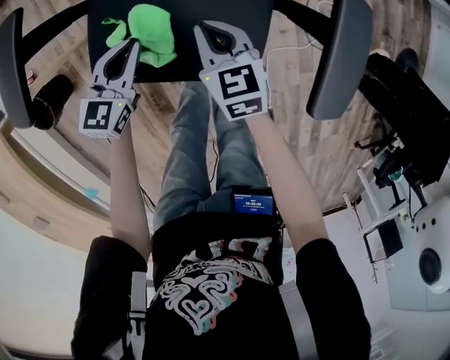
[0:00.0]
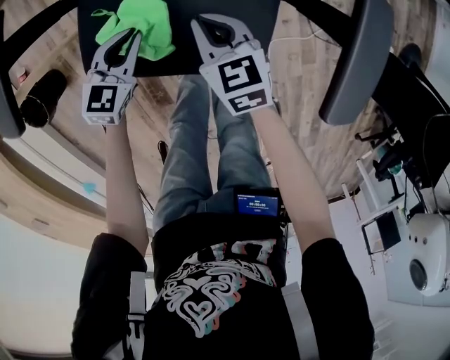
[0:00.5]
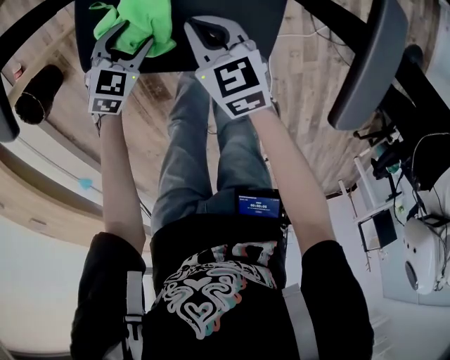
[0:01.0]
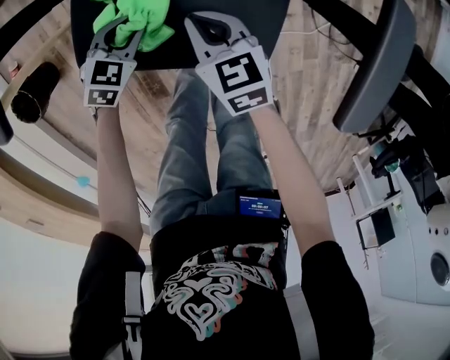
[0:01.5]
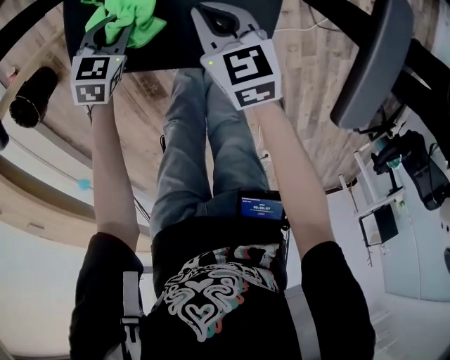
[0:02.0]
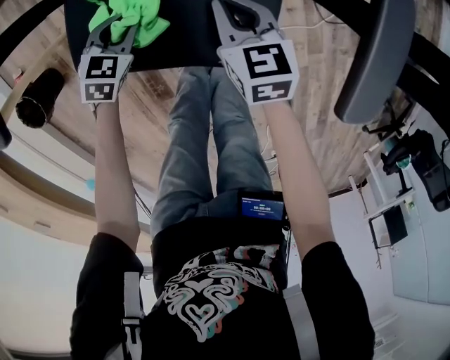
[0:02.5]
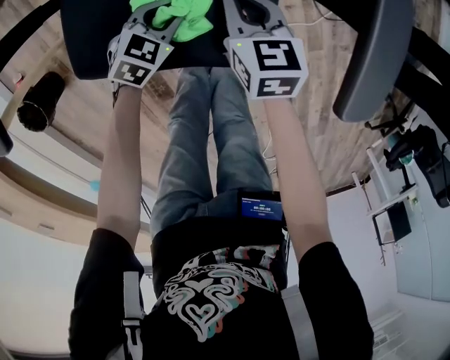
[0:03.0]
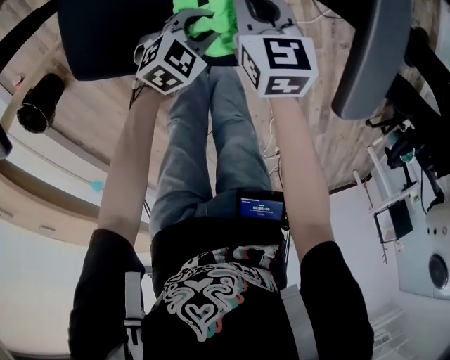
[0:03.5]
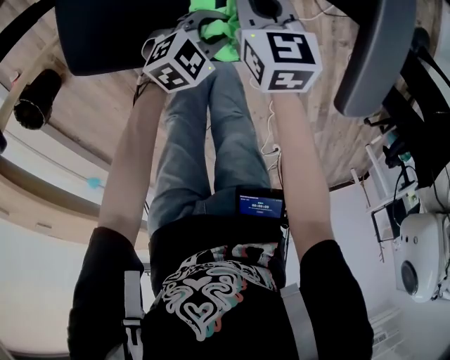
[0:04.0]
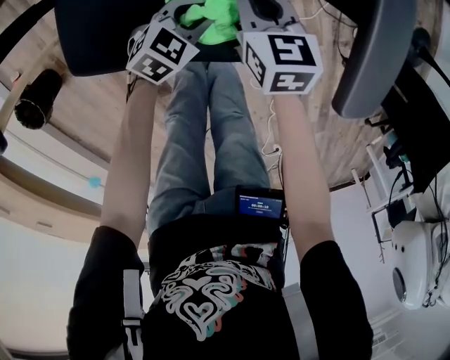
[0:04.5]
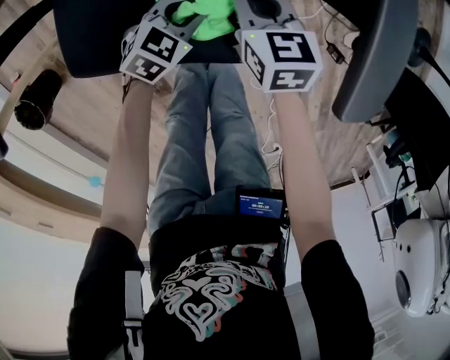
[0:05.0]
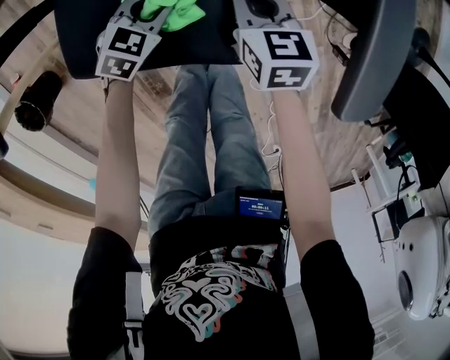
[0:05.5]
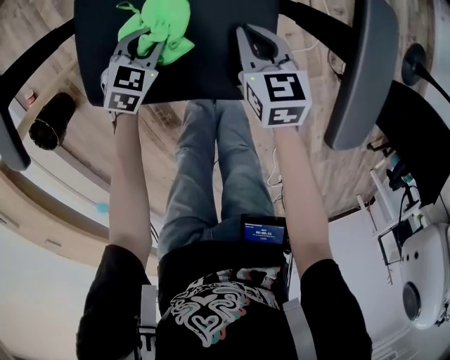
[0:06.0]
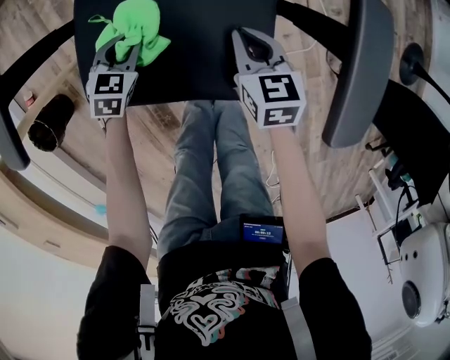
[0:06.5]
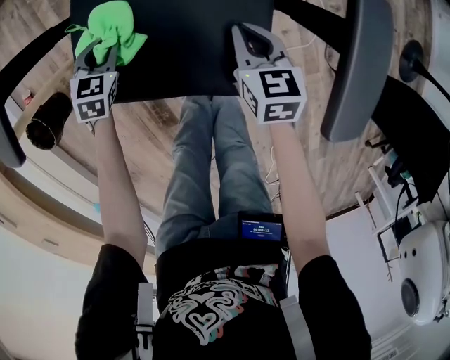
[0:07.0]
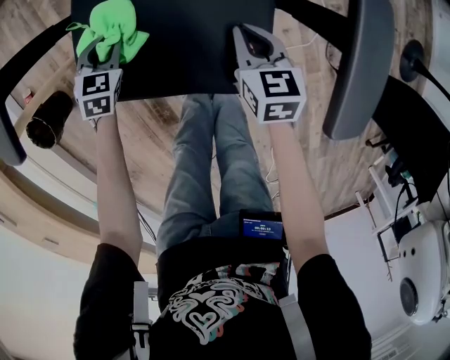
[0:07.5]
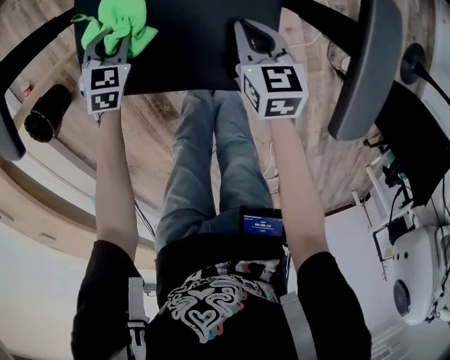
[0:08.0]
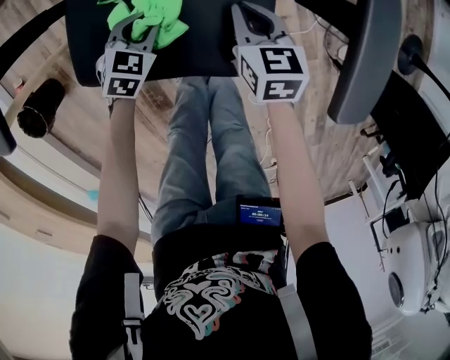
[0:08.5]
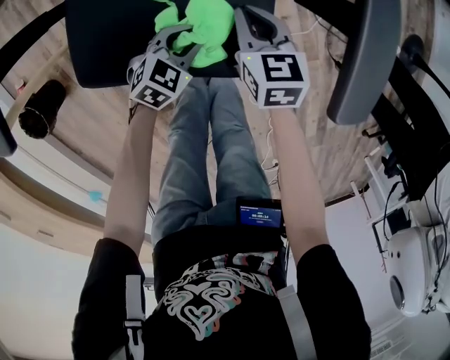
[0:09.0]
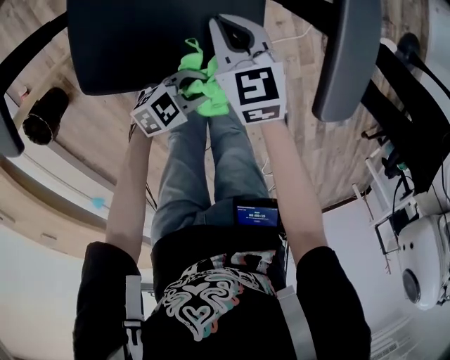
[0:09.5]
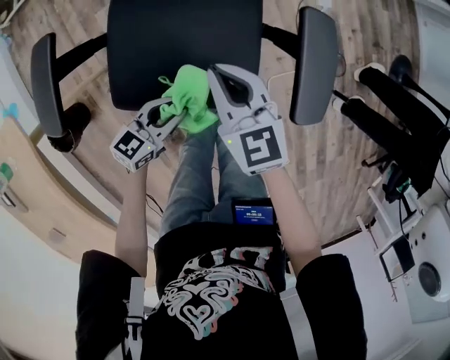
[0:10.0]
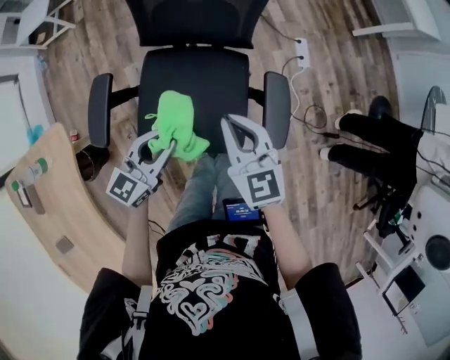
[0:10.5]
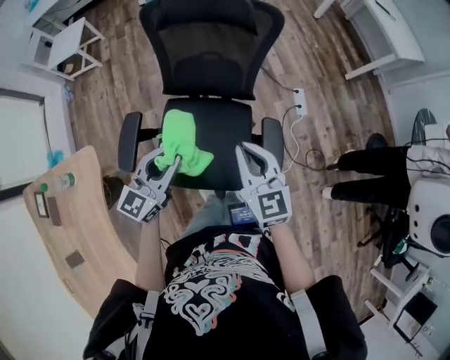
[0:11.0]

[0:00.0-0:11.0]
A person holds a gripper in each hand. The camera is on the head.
0:00.0 to 0:02.0: The left gripper is displaced downward by approximately 15 cm, rotates about 30 degrees, and opens, then closes once more.
0:02.0 to 0:03.5: The left gripper ends up approximately 20 cm from where it was, and turns by approximately 30 degrees. The right gripper ends up roughly 10 cm from where it was.
0:03.5 to 0:05.5: The left gripper moves to the left, some 10 cm.
0:05.5 to 0:07.5: The left gripper travels to the left by about 15 cm, and rotates approximately 20 degrees.
0:07.5 to 0:09.0: The left gripper goes approximately 20 cm to the right, and swivels approximately 30 degrees.
0:09.0 to 0:11.0: The two grippers go about 50 cm upward. The right gripper changes its angle by approximately 30 degrees. The left gripper points its fingers about 40 degrees further upward.

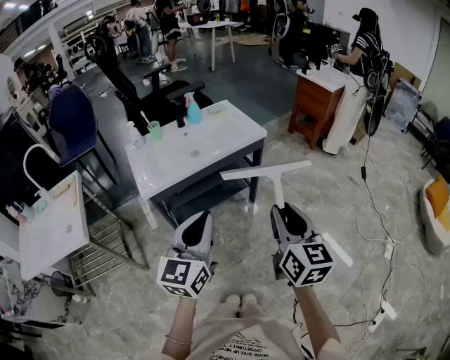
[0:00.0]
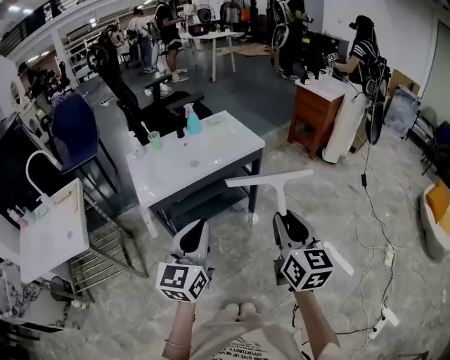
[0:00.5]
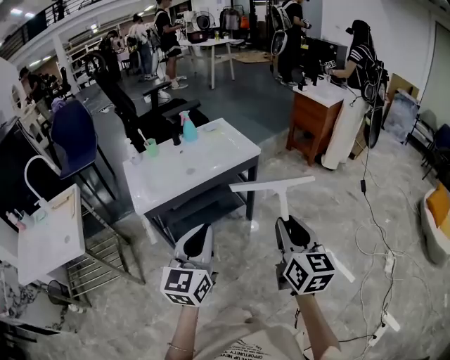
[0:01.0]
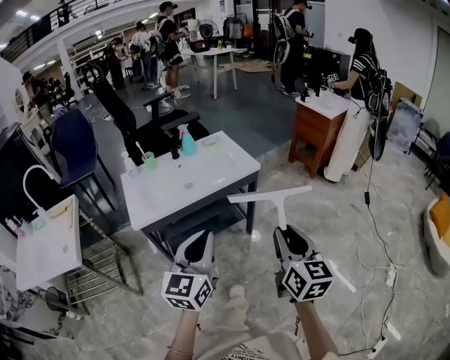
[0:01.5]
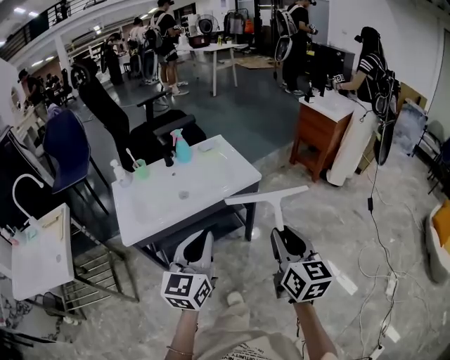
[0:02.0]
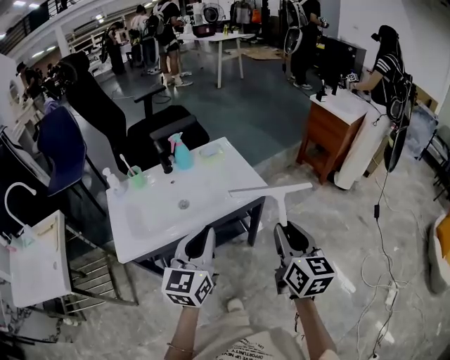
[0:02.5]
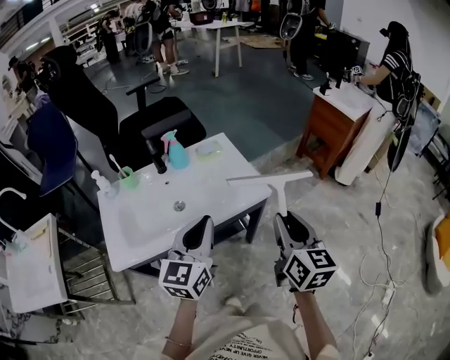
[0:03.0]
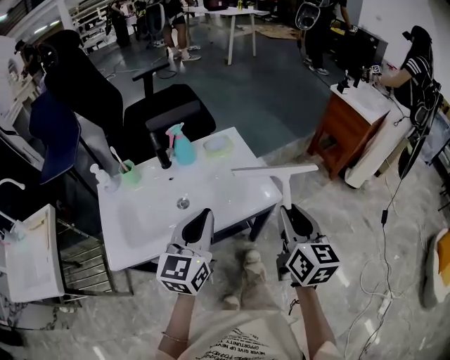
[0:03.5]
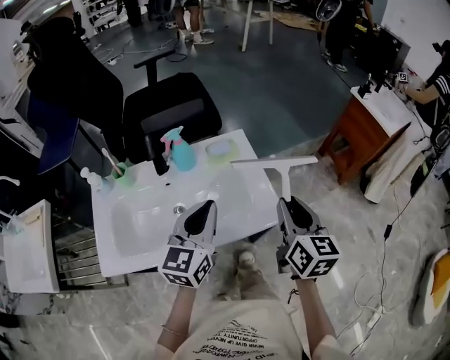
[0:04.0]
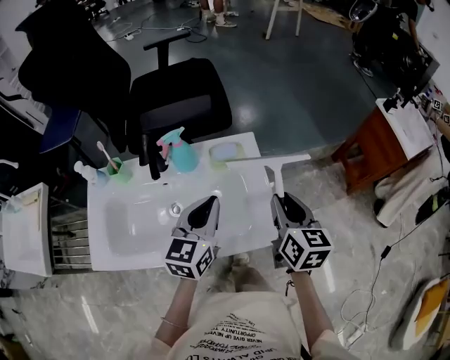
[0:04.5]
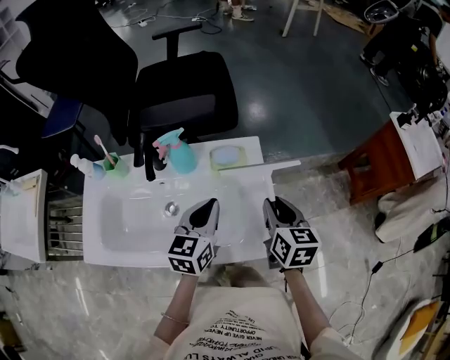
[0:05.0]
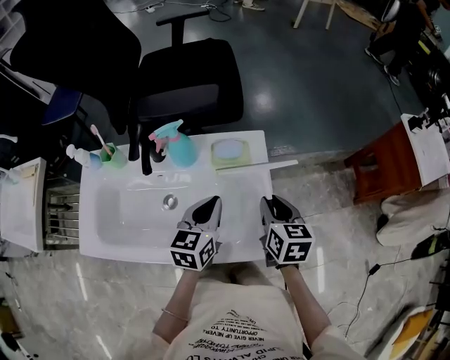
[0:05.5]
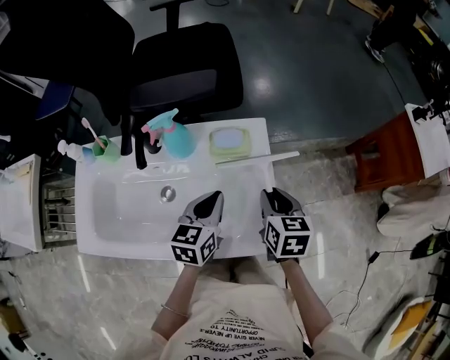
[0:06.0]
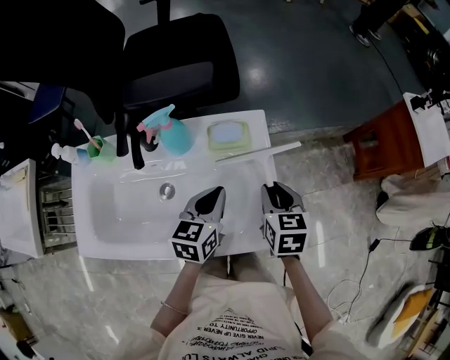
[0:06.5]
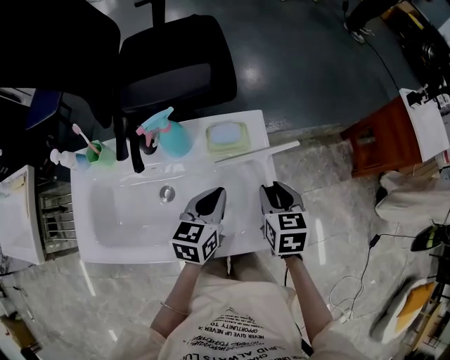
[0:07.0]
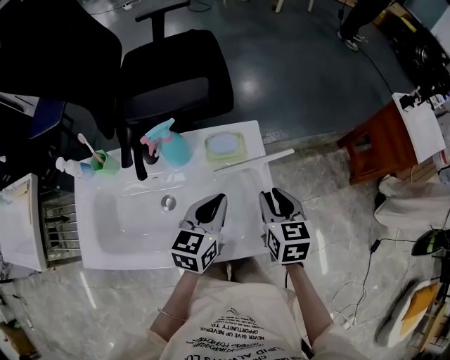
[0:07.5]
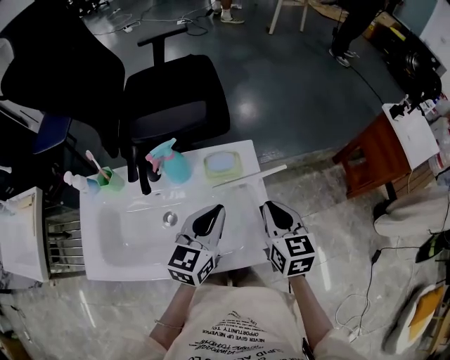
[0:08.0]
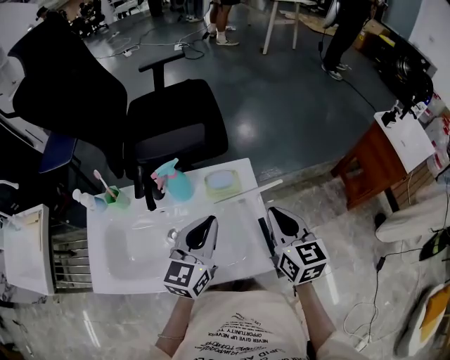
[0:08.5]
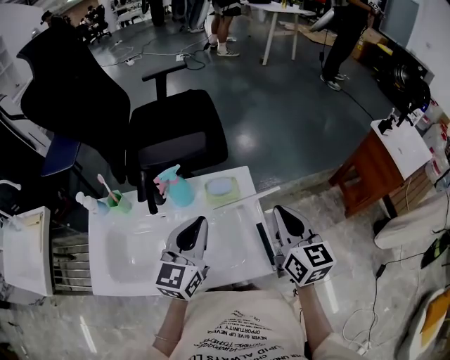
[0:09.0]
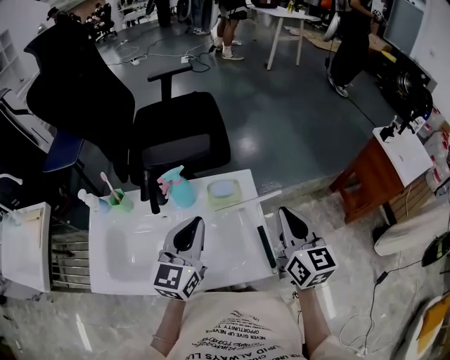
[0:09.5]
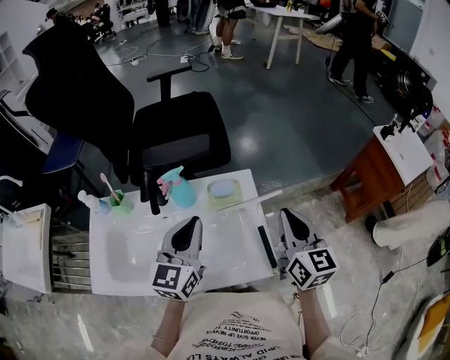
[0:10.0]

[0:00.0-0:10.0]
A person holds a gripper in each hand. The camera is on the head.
0:00.0 to 0:02.0: The right gripper heads forward and to the right, covering about 15 cm, while the left gripper shifts about 15 cm forward.
0:02.0 to 0:04.0: The two grippers go some 35 cm forward.
0:04.0 to 0:06.0: The two grippers go about 20 cm downward and forward. The right gripper swivels about 30 degrees. Meanwhile the left gripper turns by roughly 30 degrees.
0:06.0 to 0:08.0: Both grippers move upward, some 10 cm.
0:08.0 to 0:10.0: The left gripper is displaced upward and to the left by some 10 cm; the right gripper shifts approximately 10 cm upward.

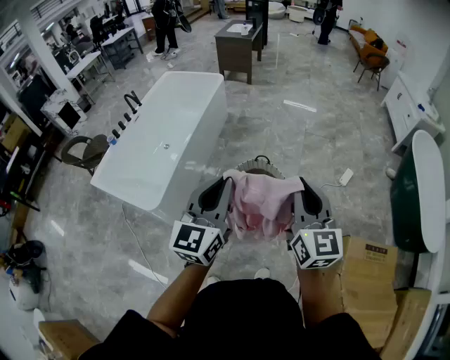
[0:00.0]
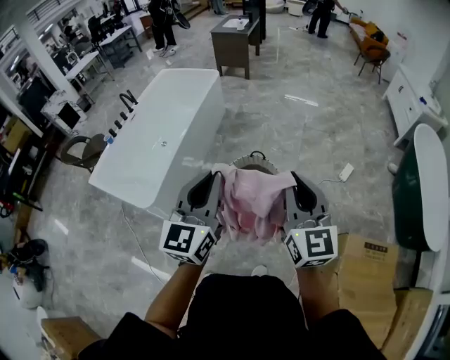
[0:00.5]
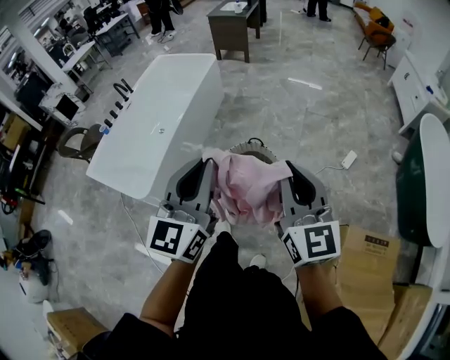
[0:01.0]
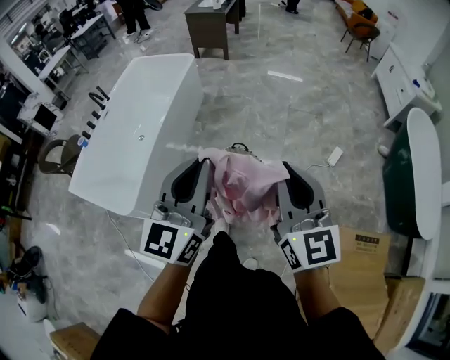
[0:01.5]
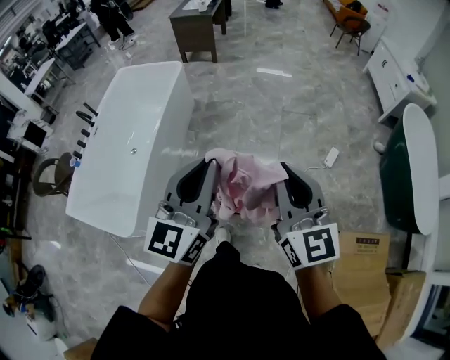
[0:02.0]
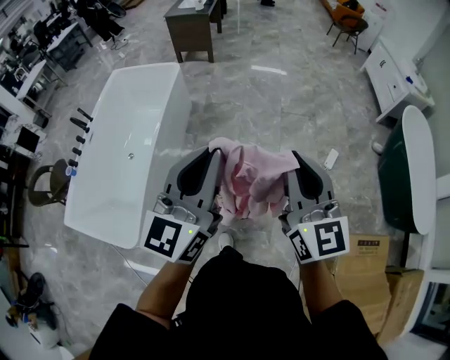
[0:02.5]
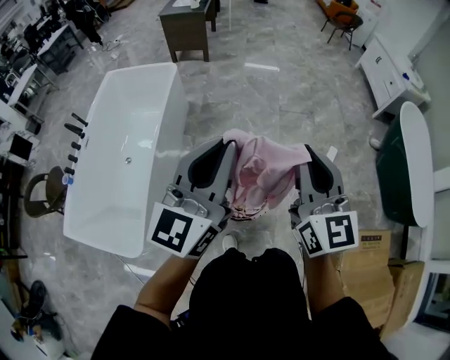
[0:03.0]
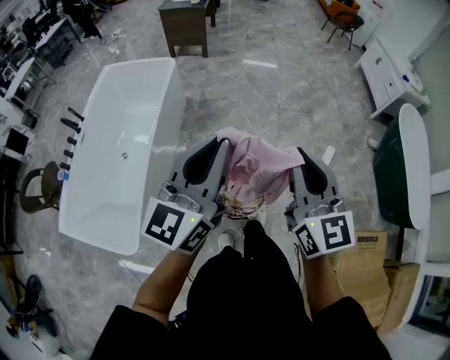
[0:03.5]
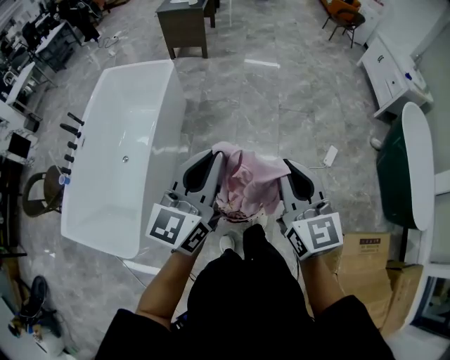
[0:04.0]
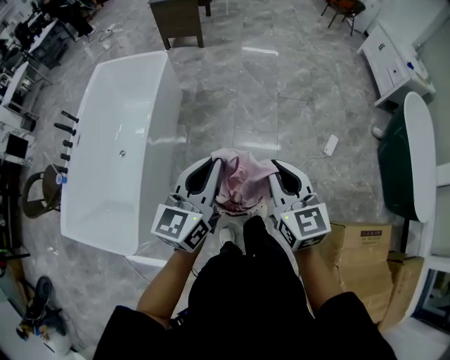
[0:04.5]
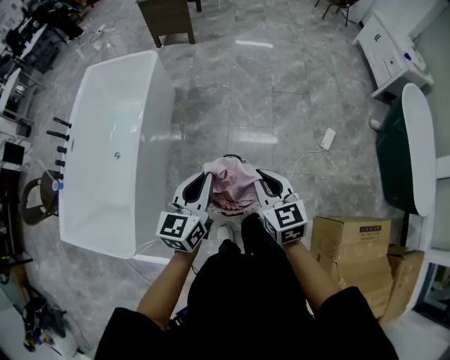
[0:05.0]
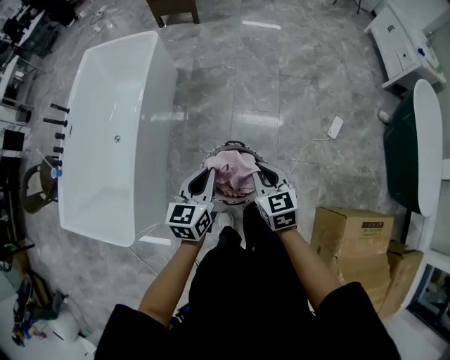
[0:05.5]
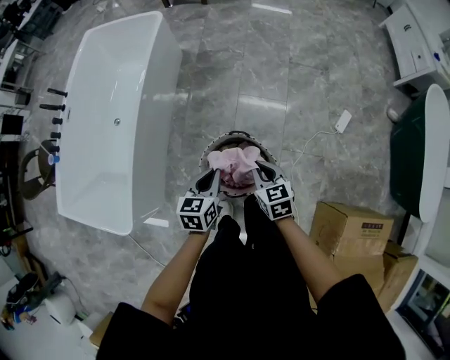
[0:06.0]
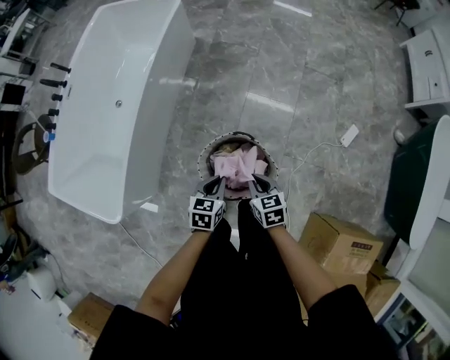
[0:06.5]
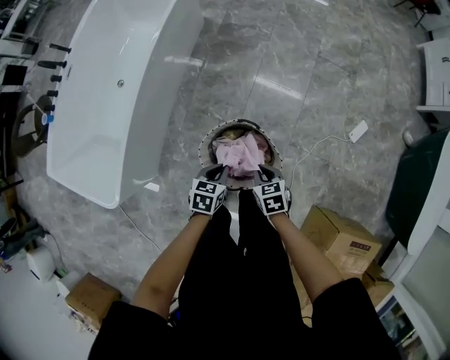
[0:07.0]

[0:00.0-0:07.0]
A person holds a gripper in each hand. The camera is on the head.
0:00.0 to 0:02.0: The grippers both shift forward by some 25 cm.
0:02.0 to 0:03.5: Both grippers travel together forward and to the left, roughly 15 cm.
0:03.5 to 0:05.0: Both grippers move downward, some 25 cm. The right gripper swivels roughly 30 degrees. The left gripper turns by approximately 30 degrees.
0:05.0 to 0:07.0: Both grippers travel together downward, about 35 cm. The right gripper angles its fingers downward, by about 30 degrees; the left gripper tilts its fingers roughly 40 degrees downward.
